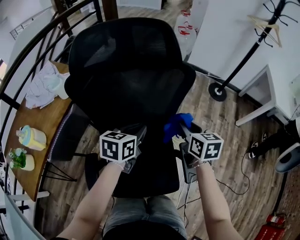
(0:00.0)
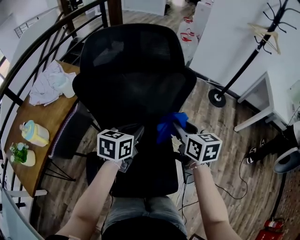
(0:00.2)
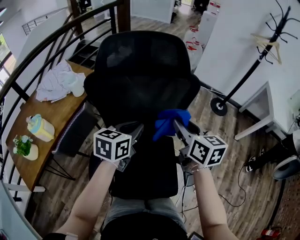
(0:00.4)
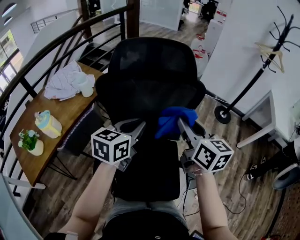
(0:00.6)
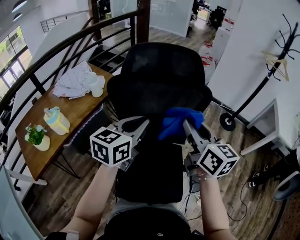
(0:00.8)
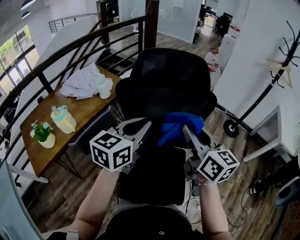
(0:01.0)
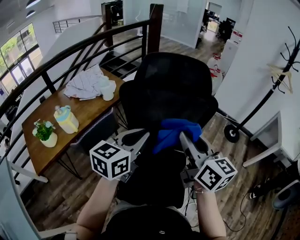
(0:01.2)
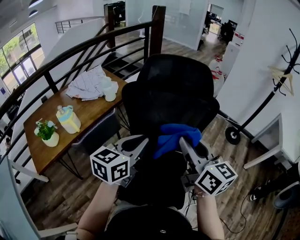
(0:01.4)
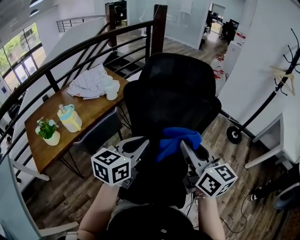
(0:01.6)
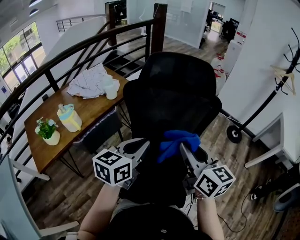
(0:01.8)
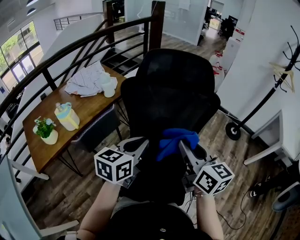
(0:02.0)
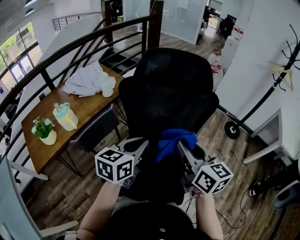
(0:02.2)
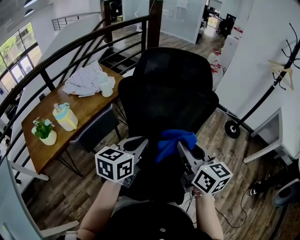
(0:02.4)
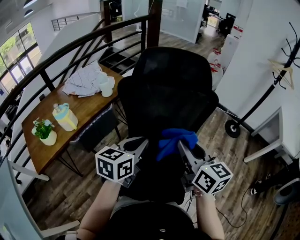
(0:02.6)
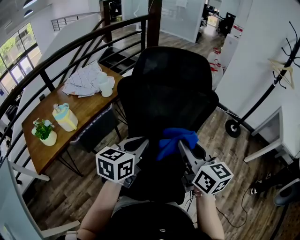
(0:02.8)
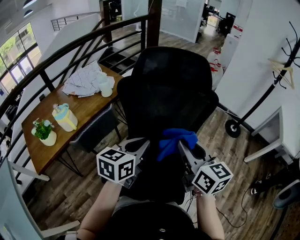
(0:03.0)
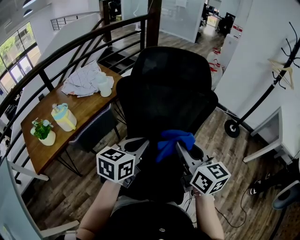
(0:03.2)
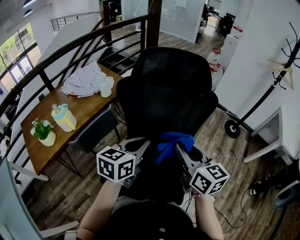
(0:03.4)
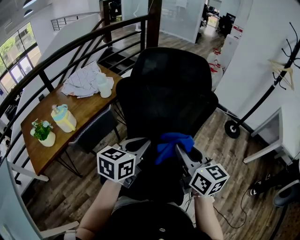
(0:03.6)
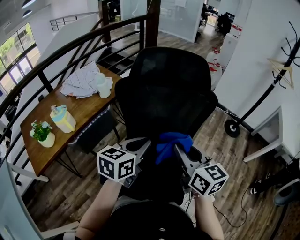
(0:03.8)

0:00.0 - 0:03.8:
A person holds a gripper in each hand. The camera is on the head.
0:00.0 - 0:01.2: The right gripper goes some 30 cm upward, to the left and backward, and angles its fingers upward, by approximately 30 degrees; the left gripper travels upward, backward and to the left by roughly 25 cm, and turns by roughly 30 degrees.
0:01.2 - 0:02.6: The two grippers go some 5 cm downward.
0:02.6 - 0:03.8: The grippers stay close to where they were, moving slightly.

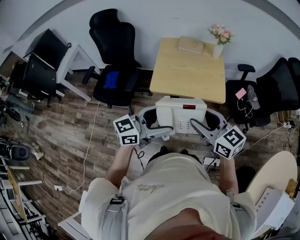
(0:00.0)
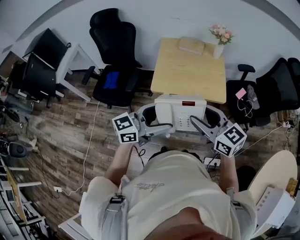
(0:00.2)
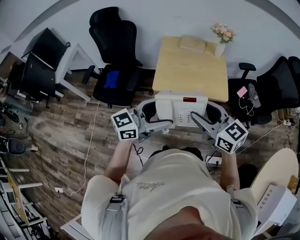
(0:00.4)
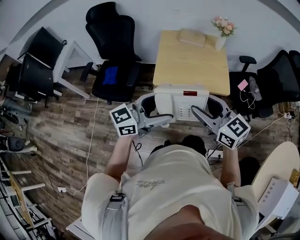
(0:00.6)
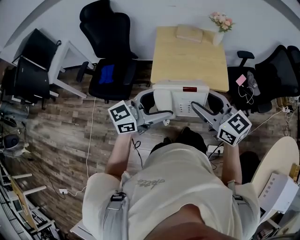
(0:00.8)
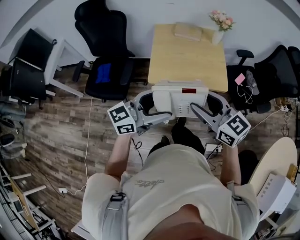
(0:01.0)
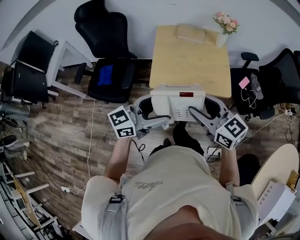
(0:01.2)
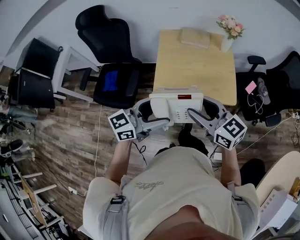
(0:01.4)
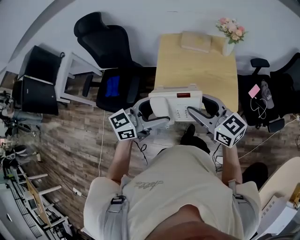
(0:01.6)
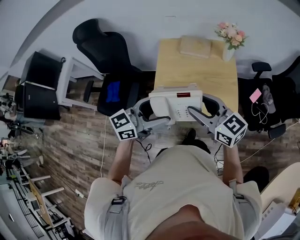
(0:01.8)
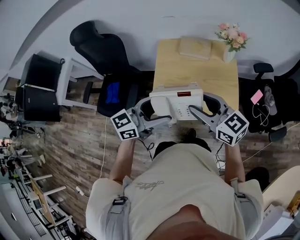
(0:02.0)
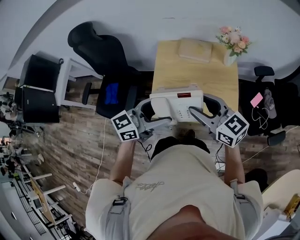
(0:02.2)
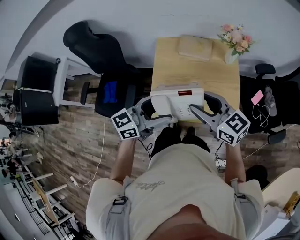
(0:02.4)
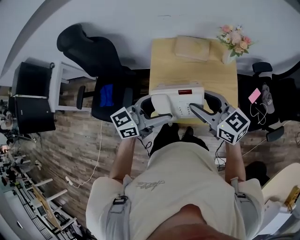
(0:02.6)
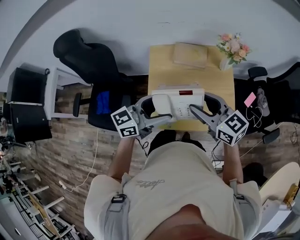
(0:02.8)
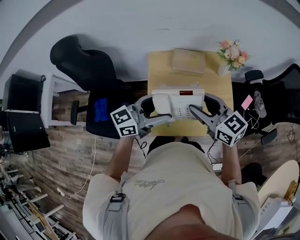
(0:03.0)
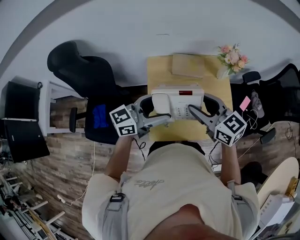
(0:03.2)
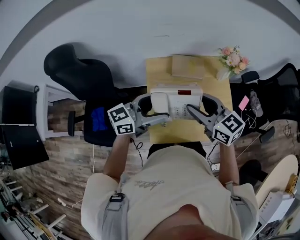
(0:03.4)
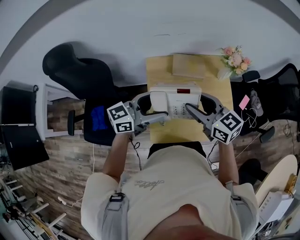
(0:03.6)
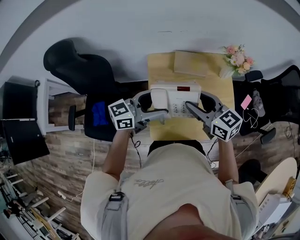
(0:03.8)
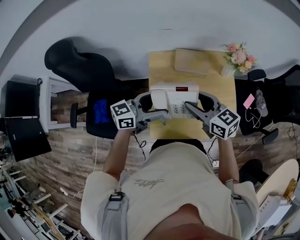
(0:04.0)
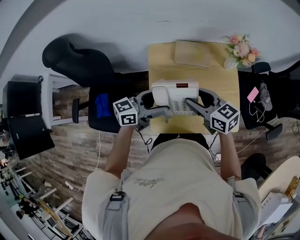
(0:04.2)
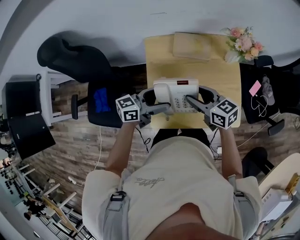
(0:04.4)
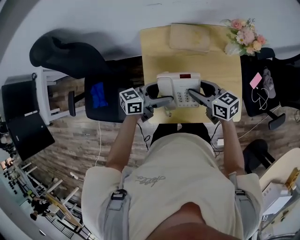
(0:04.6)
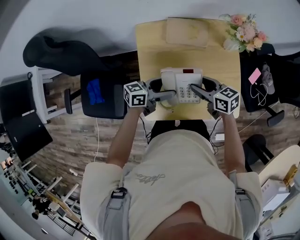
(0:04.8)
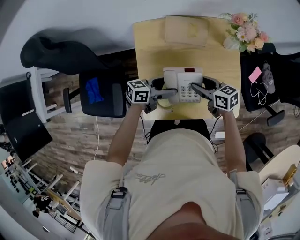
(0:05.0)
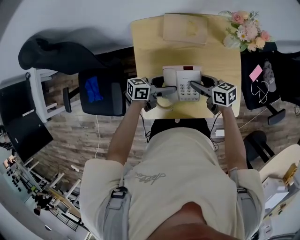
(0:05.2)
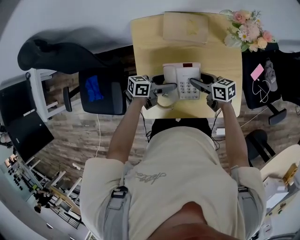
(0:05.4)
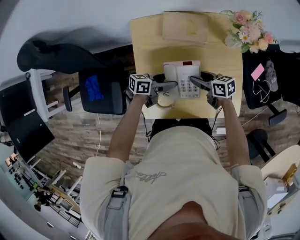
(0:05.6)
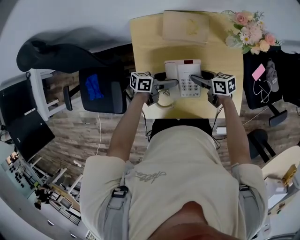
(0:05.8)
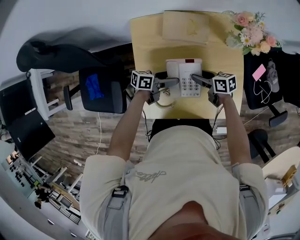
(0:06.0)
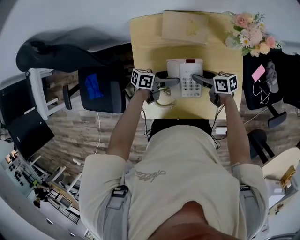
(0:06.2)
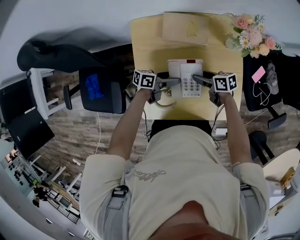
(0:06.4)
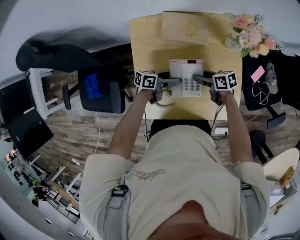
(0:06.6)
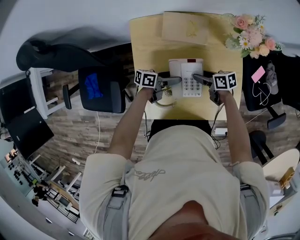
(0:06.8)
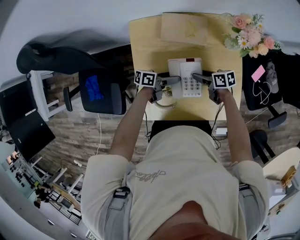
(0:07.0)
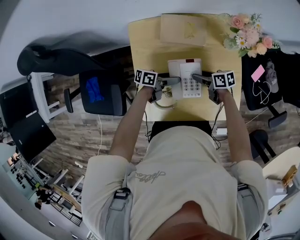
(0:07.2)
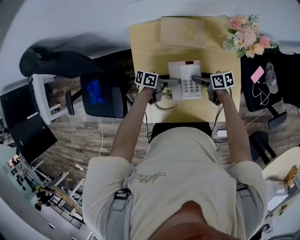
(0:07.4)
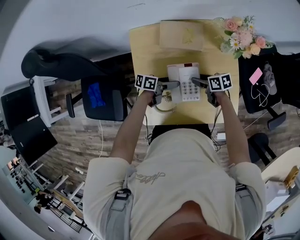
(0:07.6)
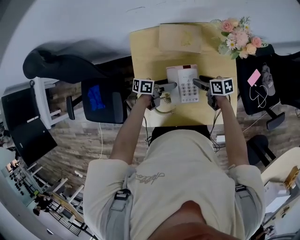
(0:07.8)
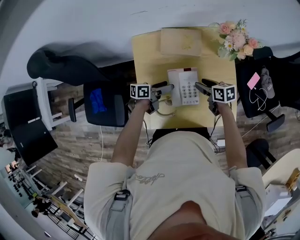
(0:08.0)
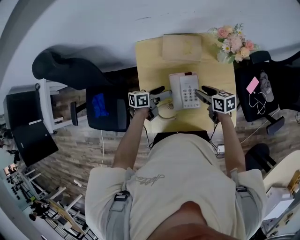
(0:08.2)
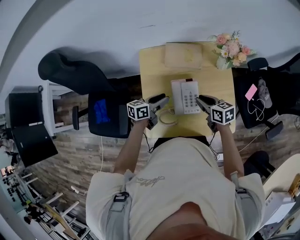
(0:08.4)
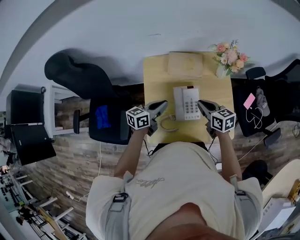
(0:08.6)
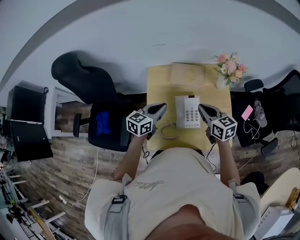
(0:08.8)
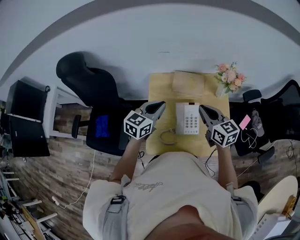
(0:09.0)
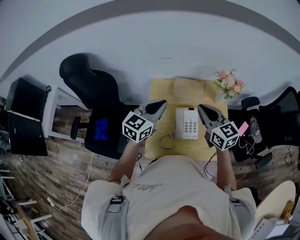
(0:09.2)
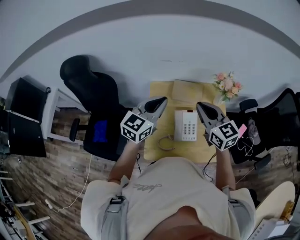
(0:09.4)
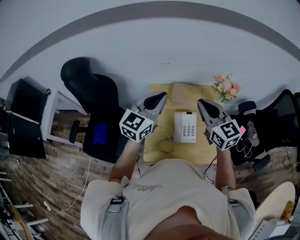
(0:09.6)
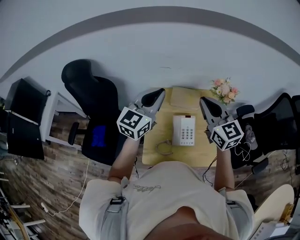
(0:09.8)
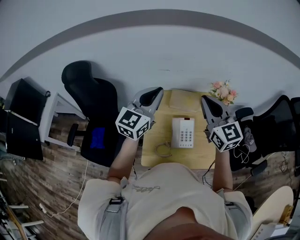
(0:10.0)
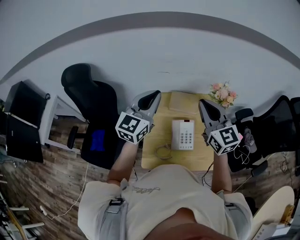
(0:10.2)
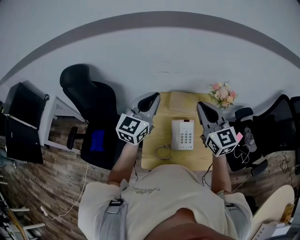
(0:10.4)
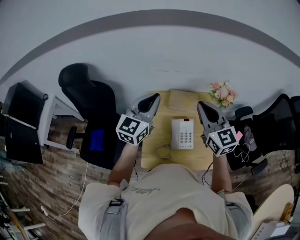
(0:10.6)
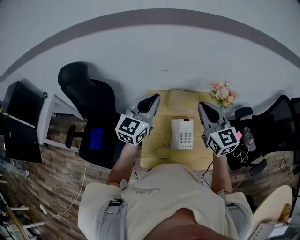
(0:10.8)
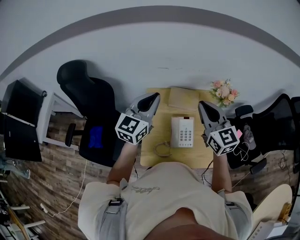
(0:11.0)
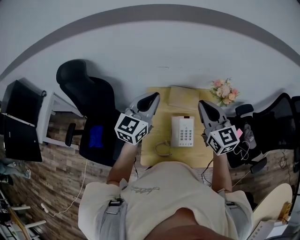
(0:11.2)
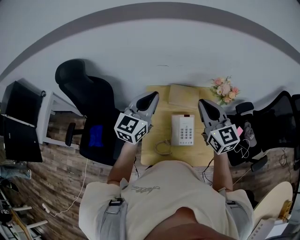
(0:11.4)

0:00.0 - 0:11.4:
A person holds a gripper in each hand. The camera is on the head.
0:00.0 - 0:01.4: The two grippers go about 15 cm forward and to the left.
0:01.4 - 0:02.8: Both grippers travel together forward, approximately 25 cm.
0:02.8 - 0:04.2: The two grippers go approximately 15 cm forward, downward and to the left.
0:04.2 - 0:05.6: The grippers both shift downward by approximately 25 cm. The right gripper swivels about 30 degrees, while the left gripper turns by approximately 30 degrees.
0:05.6 - 0:07.2: The right gripper shifts approximately 5 cm downward, while the left gripper changes place by roughly 5 cm.
0:07.2 - 0:08.6: The two grippers go about 20 cm upward. The left gripper rotates about 40 degrees, and closes, while the right gripper rotates some 30 degrees, and closes up.
0:08.6 - 0:10.0: Both grippers travel together upward, some 30 cm. The right gripper rotates roughly 50 degrees. The left gripper rolls clockwise, seen from behind, by about 40 degrees.
0:10.0 - 0:11.4: The left gripper ends up some 5 cm from where it was.

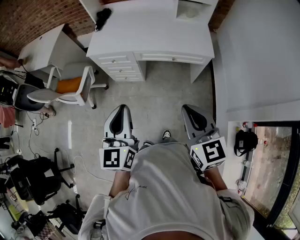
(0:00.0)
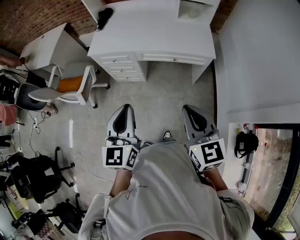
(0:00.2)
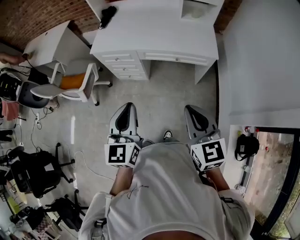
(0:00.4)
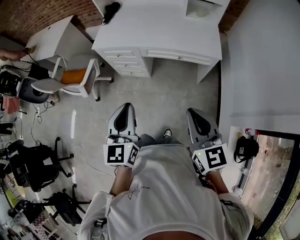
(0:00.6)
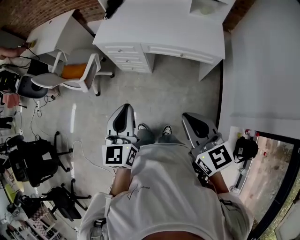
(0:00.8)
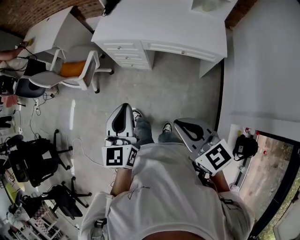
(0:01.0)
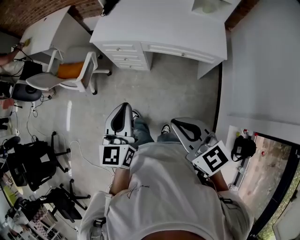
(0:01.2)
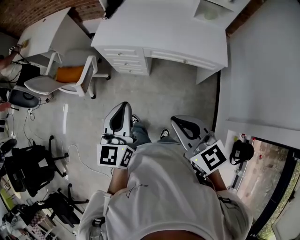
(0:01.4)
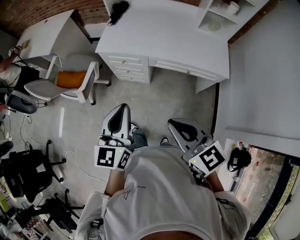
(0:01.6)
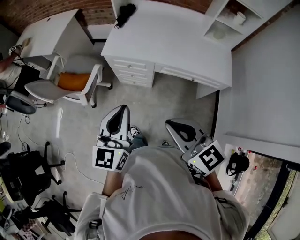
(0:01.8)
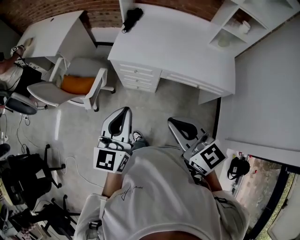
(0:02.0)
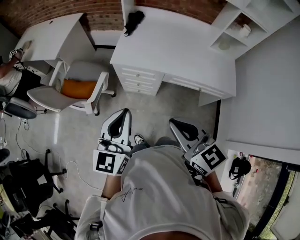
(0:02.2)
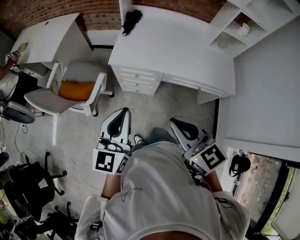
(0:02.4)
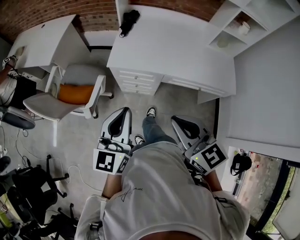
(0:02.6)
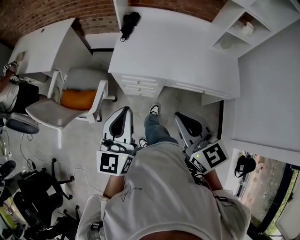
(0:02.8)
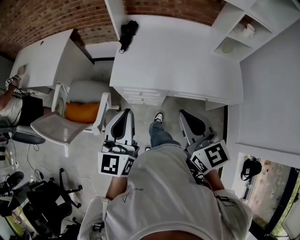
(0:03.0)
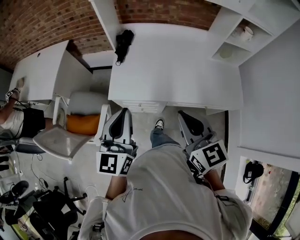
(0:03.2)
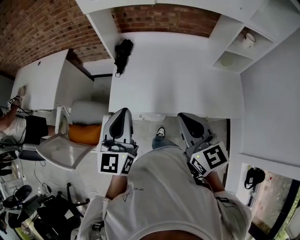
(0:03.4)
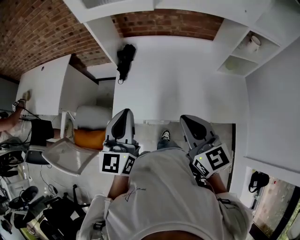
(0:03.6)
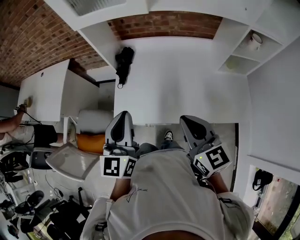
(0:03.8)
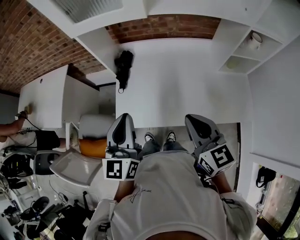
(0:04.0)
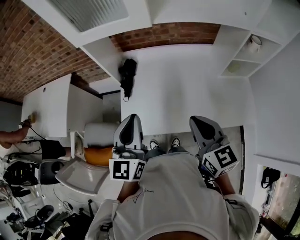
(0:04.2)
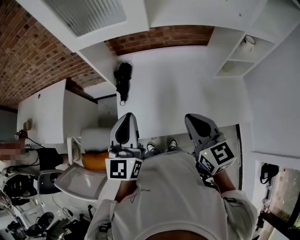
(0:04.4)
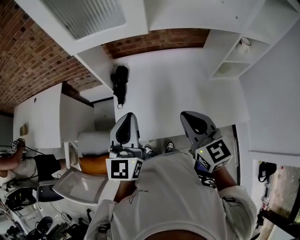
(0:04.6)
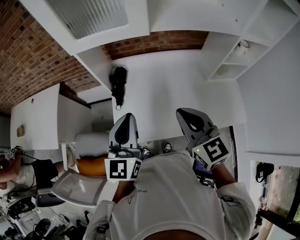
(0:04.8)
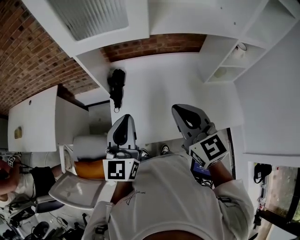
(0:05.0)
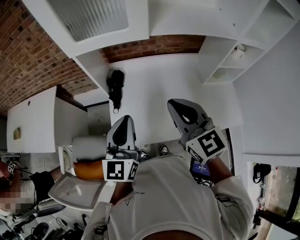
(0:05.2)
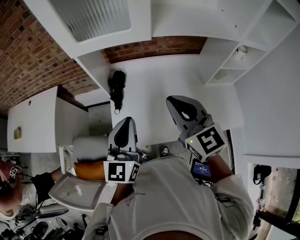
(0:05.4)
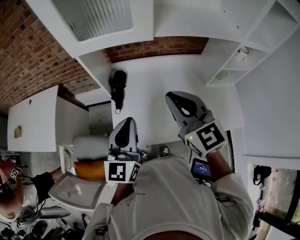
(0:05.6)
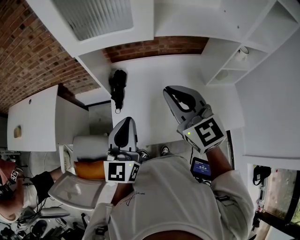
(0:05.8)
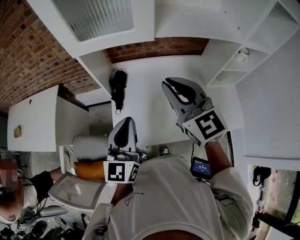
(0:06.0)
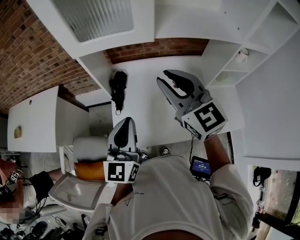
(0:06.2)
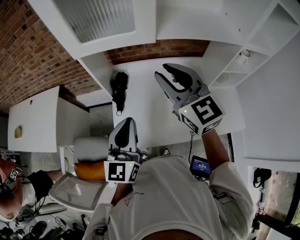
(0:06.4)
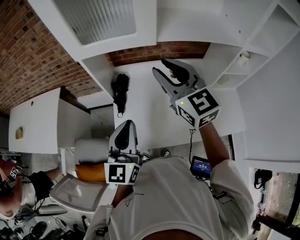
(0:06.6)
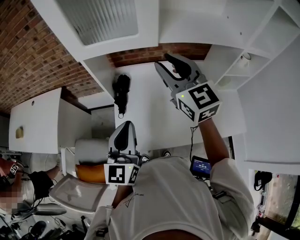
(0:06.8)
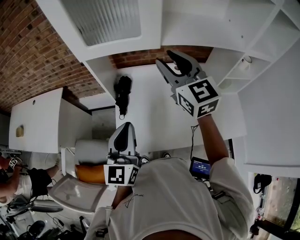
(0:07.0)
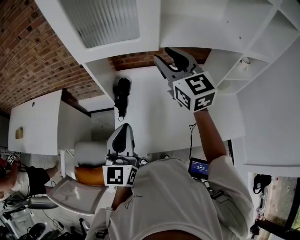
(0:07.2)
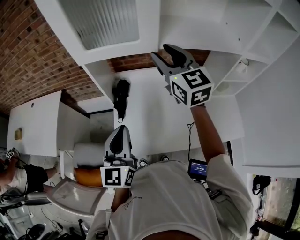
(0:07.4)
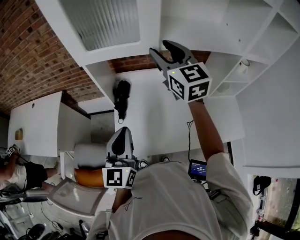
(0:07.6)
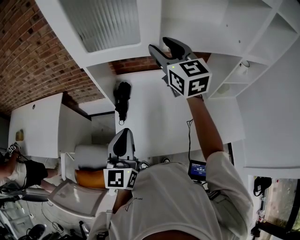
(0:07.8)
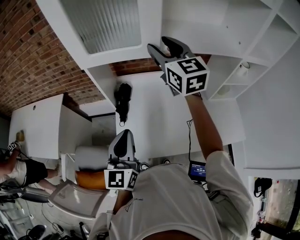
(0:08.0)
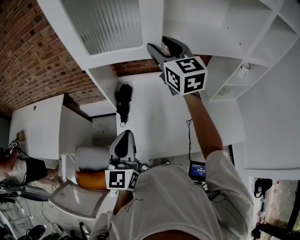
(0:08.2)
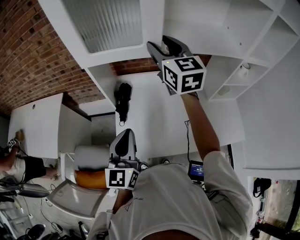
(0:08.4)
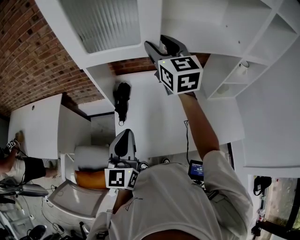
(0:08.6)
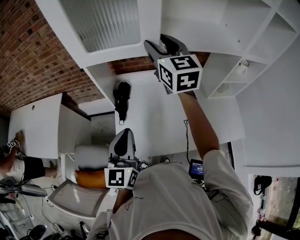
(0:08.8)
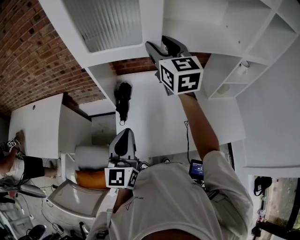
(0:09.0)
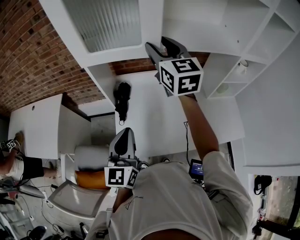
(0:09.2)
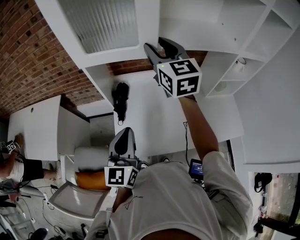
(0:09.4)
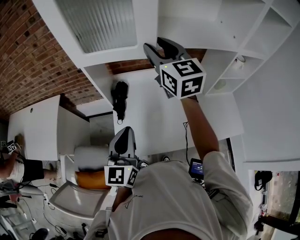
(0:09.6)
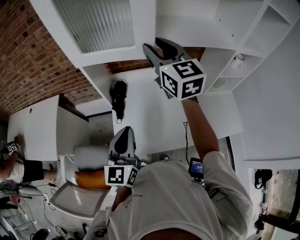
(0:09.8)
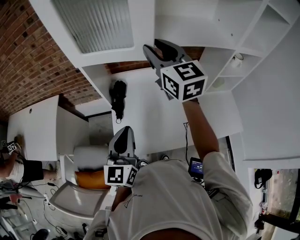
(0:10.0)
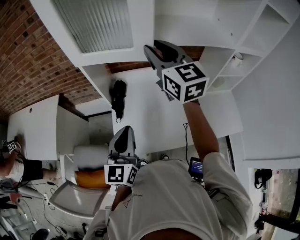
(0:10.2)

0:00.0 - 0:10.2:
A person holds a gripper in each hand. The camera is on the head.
0:00.0 - 0:01.4: The right gripper moves to the left and forward, roughly 10 cm, and swivels roughly 20 degrees. Meanwhile the left gripper goes roughly 5 cm forward.
0:01.4 - 0:03.0: The right gripper is displaced forward by roughly 30 cm; the left gripper travels forward and to the left by roughly 30 cm.
0:03.0 - 0:04.4: The grippers both shift forward by roughly 25 cm.
0:04.4 - 0:05.8: The right gripper is displaced forward, upward and to the left by some 15 cm, and changes its angle by some 20 degrees.
0:05.8 - 0:07.2: The right gripper moves forward and upward, roughly 15 cm, and opens its fingers.
0:07.2 - 0:08.8: The right gripper travels forward by some 5 cm.
0:08.8 - 0:10.2: The right gripper travels backward by approximately 5 cm, and closes.
